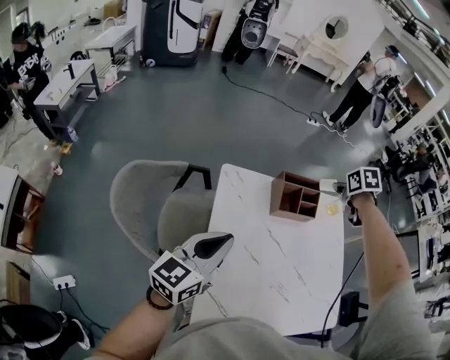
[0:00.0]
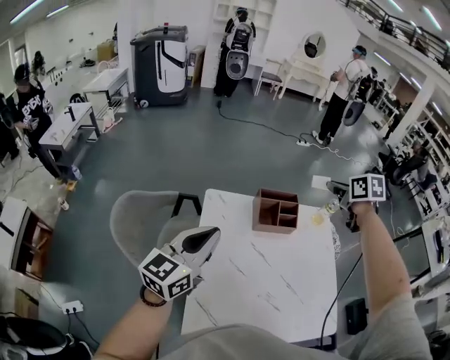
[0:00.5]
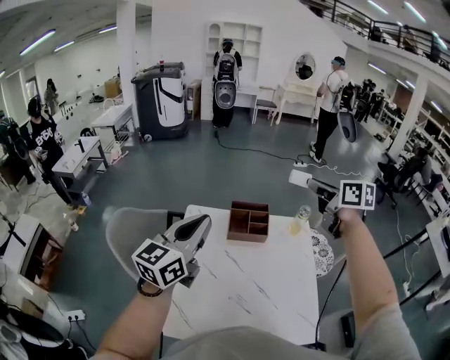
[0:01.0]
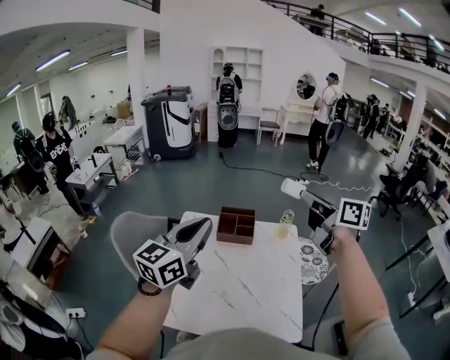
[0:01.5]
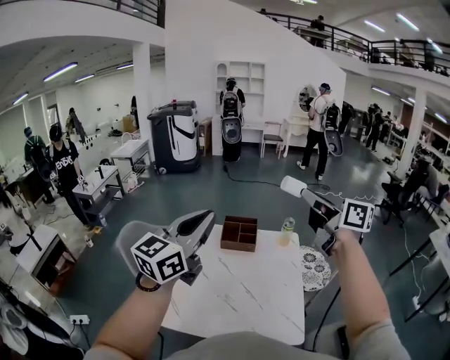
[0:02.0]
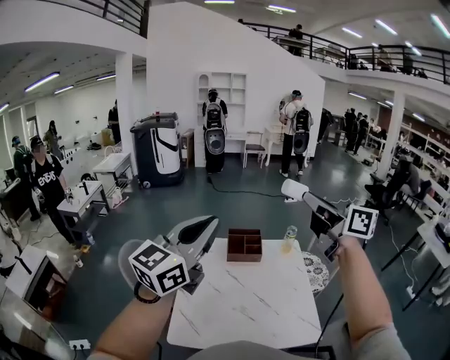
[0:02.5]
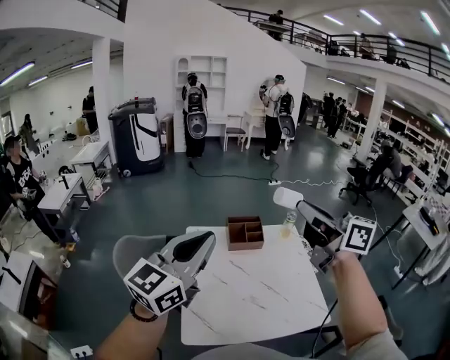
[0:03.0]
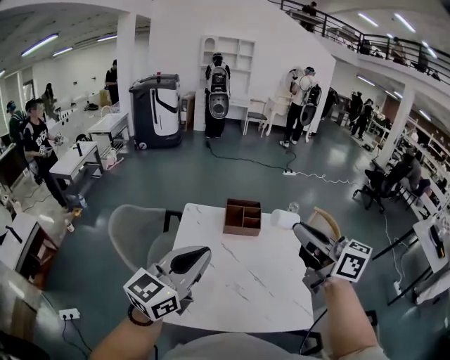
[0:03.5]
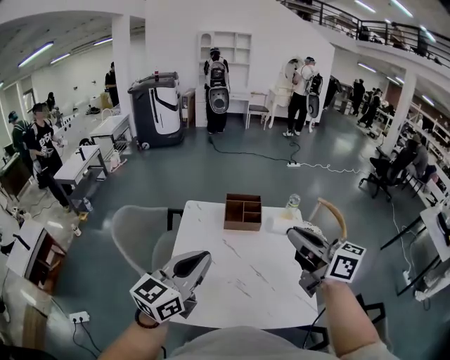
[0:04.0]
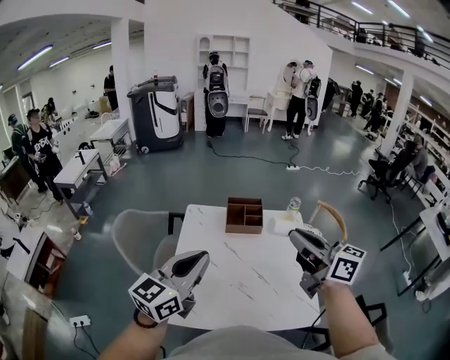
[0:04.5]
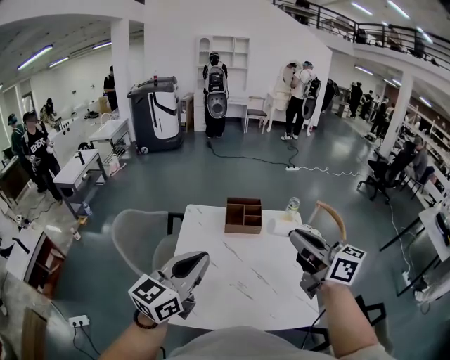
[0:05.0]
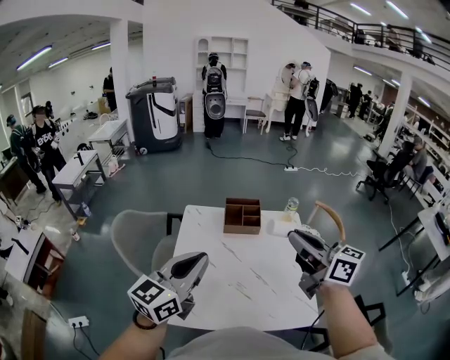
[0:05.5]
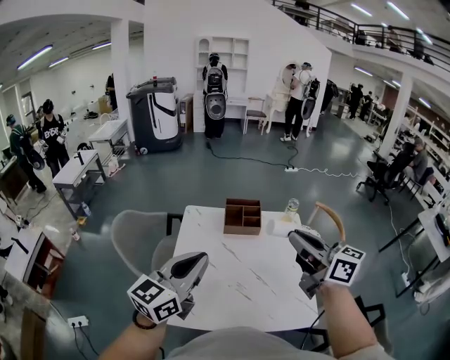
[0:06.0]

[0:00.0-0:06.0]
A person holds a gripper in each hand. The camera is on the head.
0:00.0 to 0:02.0: The grippers both shift upward by about 30 cm. The right gripper tilts its fingers approximately 70 degrees upward. The left gripper swivels about 30 degrees.
0:02.0 to 0:04.0: The right gripper is displaced downward, to the left and backward by approximately 20 cm; the left gripper is displaced downward and to the left by about 15 cm.
0:04.0 to 0:06.0: The grippers move only a little.

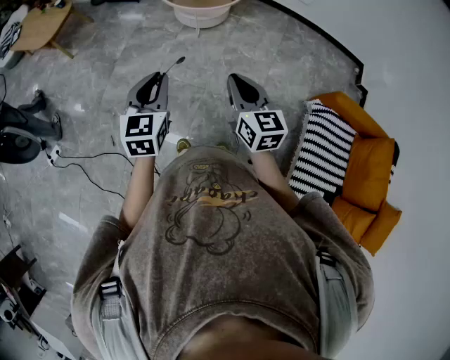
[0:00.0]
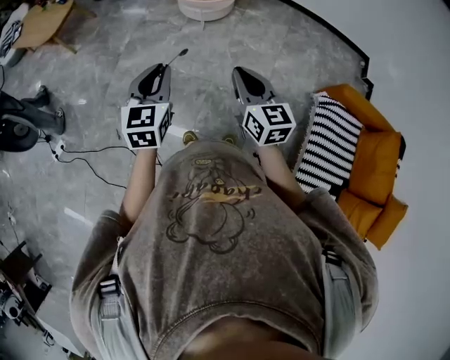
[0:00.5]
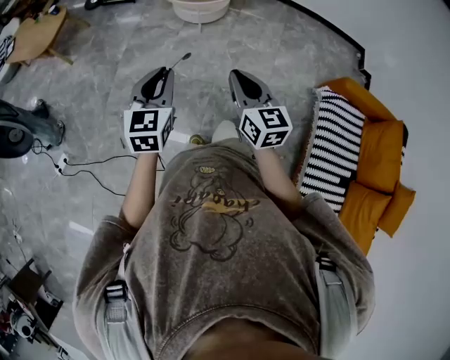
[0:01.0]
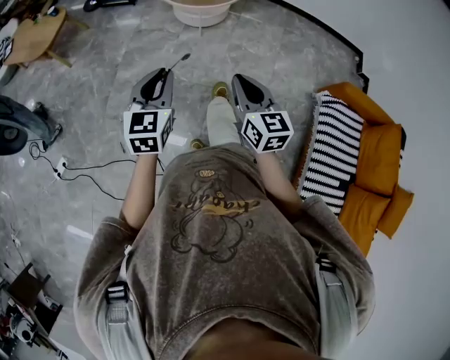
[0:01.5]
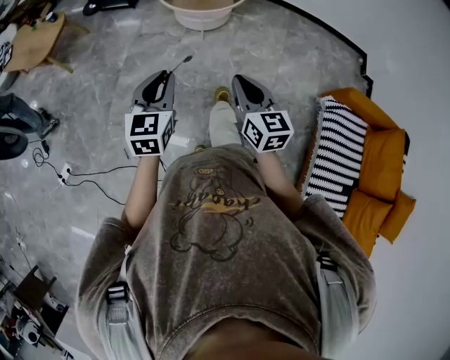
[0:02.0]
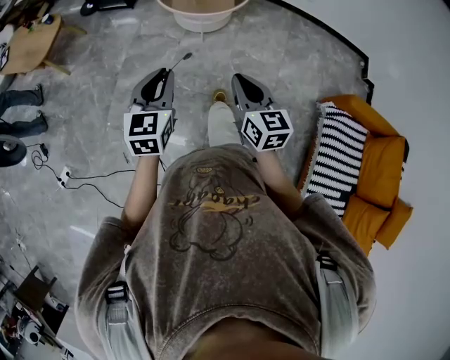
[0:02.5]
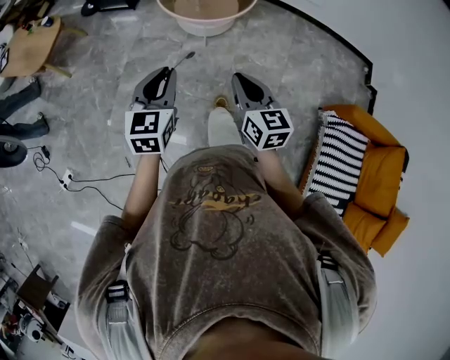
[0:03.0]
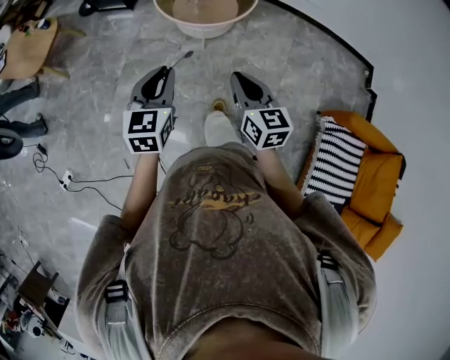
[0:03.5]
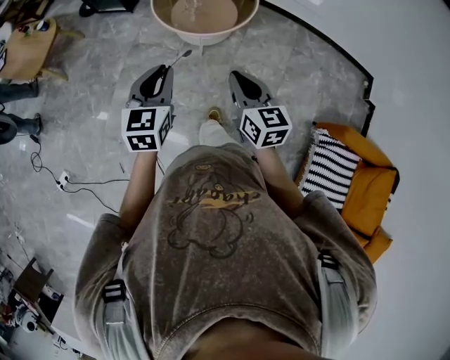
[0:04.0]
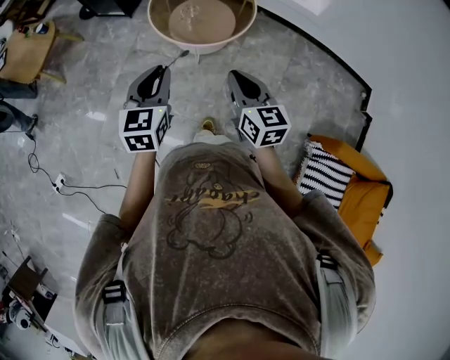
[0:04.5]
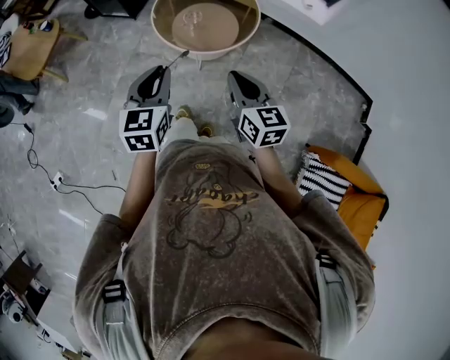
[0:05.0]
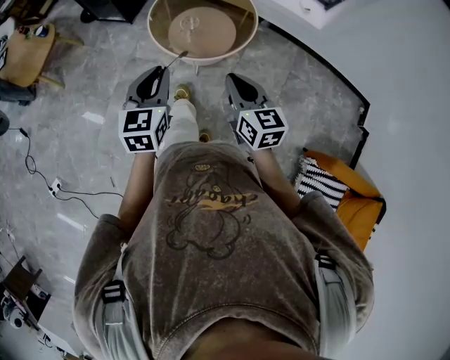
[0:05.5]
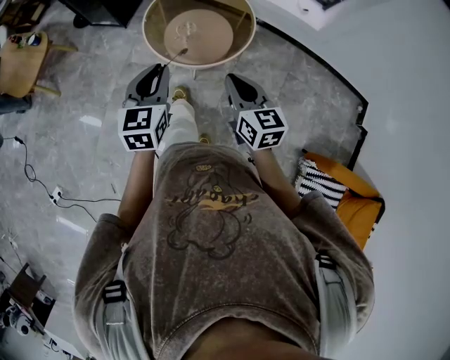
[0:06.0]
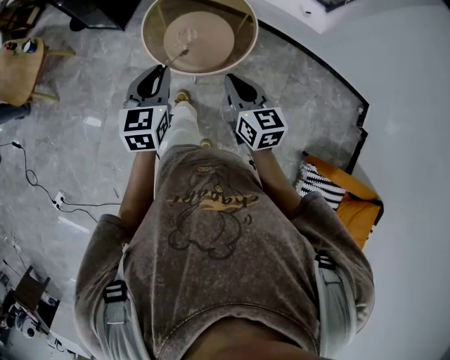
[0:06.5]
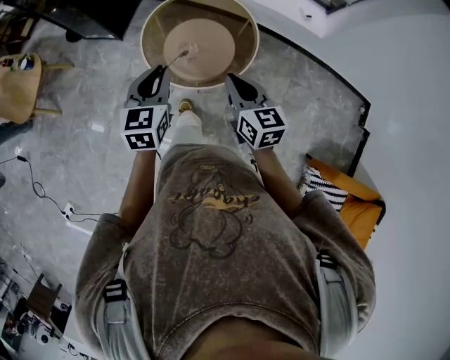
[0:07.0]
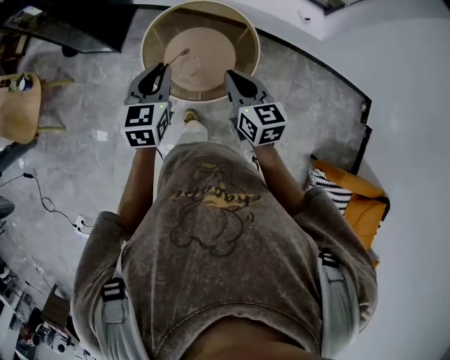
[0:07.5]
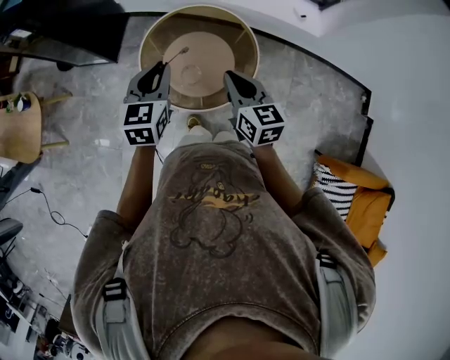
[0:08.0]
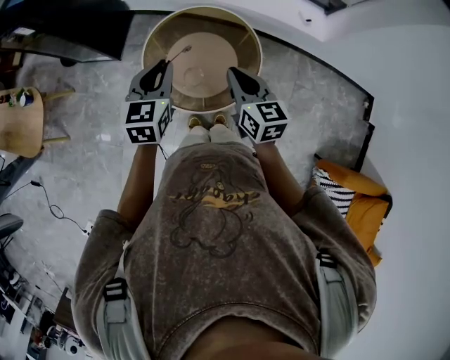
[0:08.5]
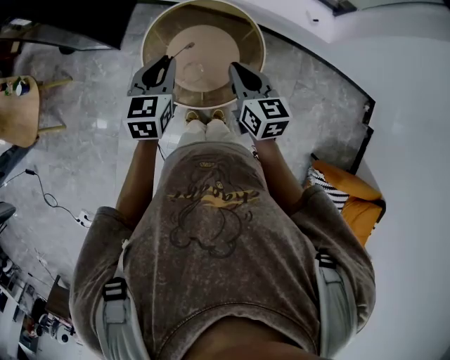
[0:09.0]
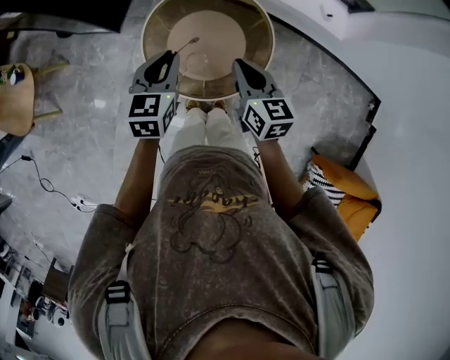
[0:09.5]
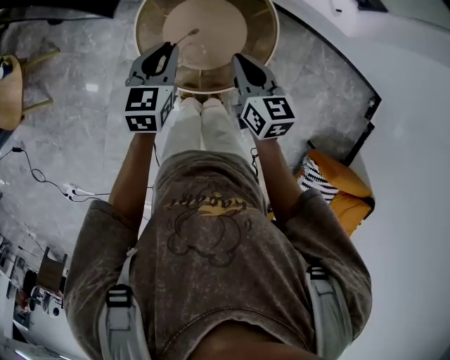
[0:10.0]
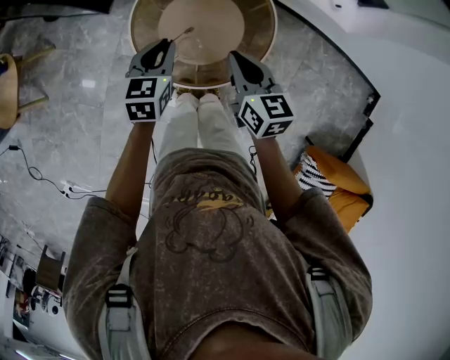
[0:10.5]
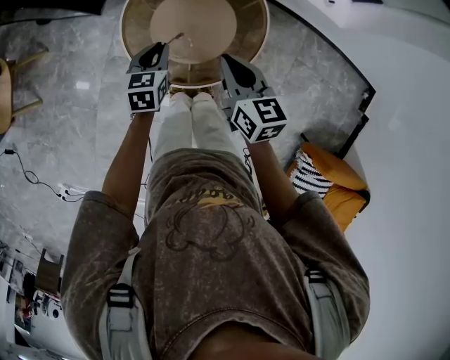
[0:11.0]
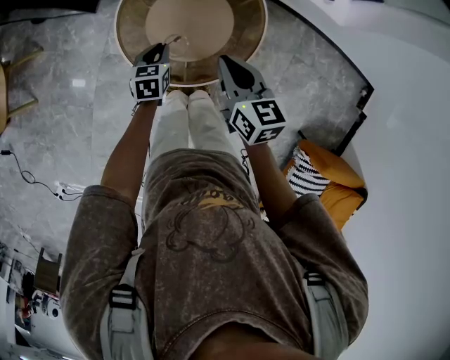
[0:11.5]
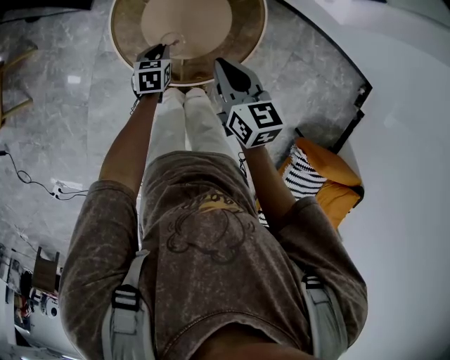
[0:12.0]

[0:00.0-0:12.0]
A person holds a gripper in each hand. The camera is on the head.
0:00.0 to 0:02.0: The right gripper goes about 10 cm to the left and forward; the left gripper heads forward and to the left, covering some 10 cm.
0:02.0 to 0:04.0: The grippers both shift forward by approximately 25 cm.
0:04.0 to 0:06.0: Both grippers travel together forward, approximately 20 cm.
0:06.0 to 0:08.0: Both grippers travel together forward, roughly 30 cm.
0:08.0 to 0:10.0: The two grippers go about 10 cm downward and forward.
0:10.0 to 0:12.0: The left gripper travels downward by roughly 25 cm, and rotates about 20 degrees.

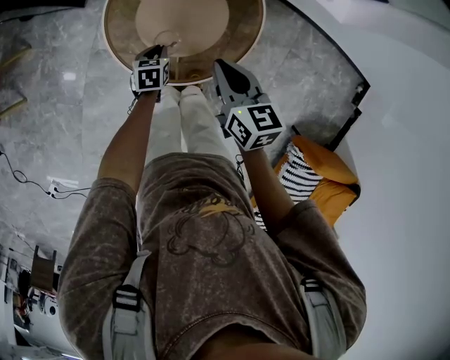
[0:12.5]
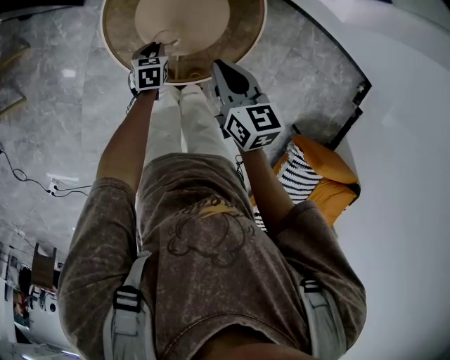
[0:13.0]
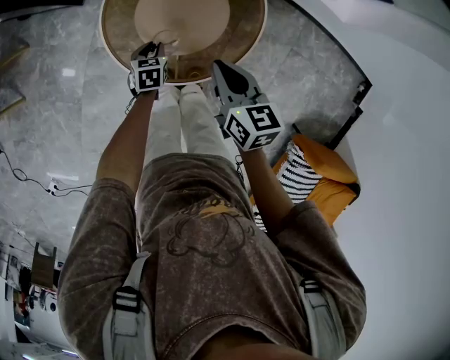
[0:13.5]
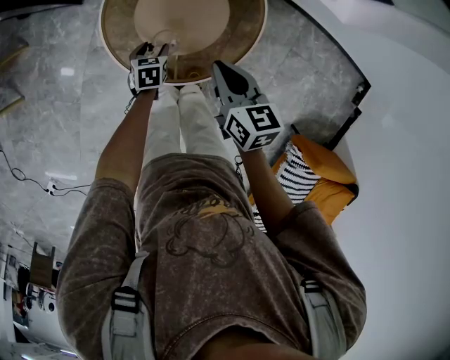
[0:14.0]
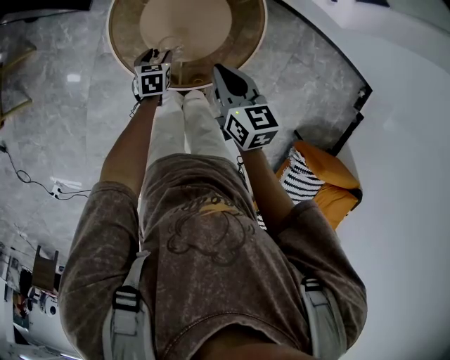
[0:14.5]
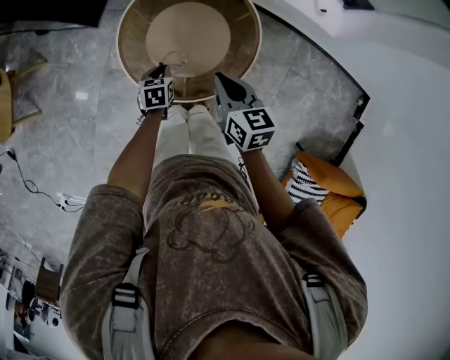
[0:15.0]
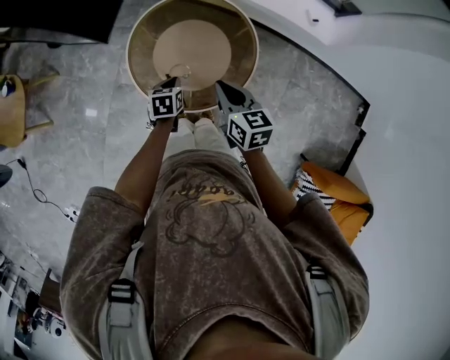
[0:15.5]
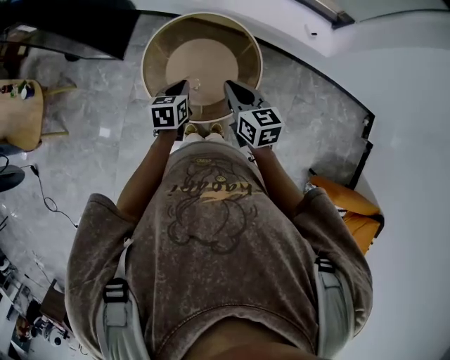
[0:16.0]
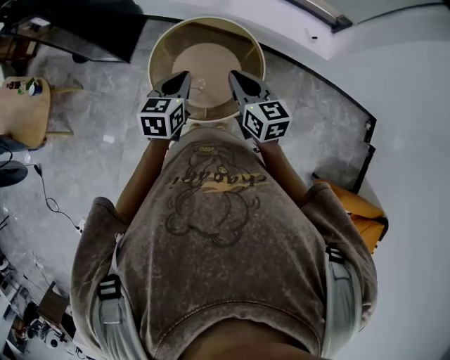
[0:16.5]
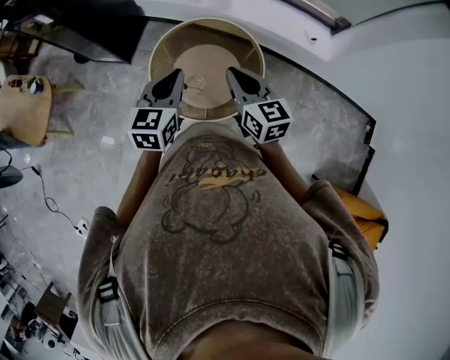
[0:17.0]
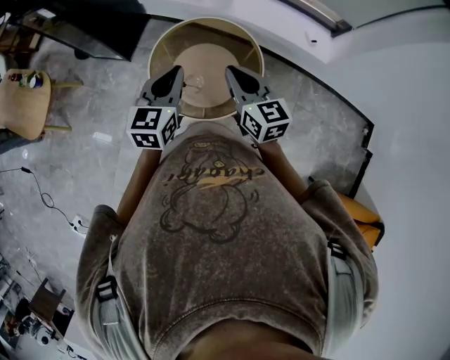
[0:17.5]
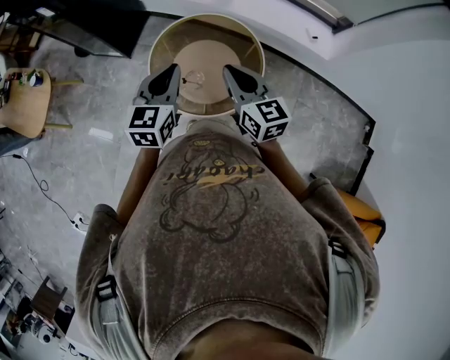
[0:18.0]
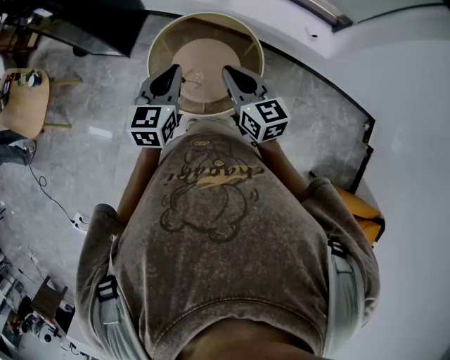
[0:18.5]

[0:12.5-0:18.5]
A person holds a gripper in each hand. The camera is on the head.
0:12.5 to 0:14.5: The left gripper opens up.
0:14.5 to 0:16.5: The left gripper heads upward, covering about 35 cm, changes its angle by some 30 degrees, and closes up. The right gripper moves upward, some 15 cm.
0:16.5 to 0:18.5: The left gripper travels upward by some 5 cm.

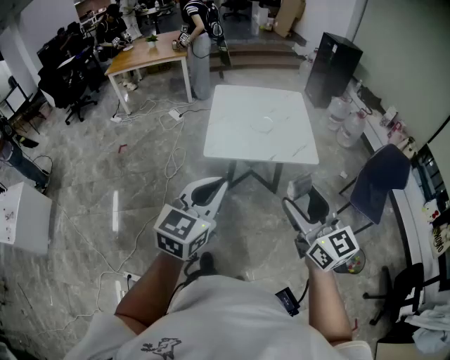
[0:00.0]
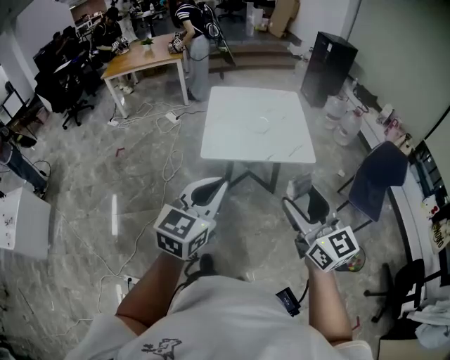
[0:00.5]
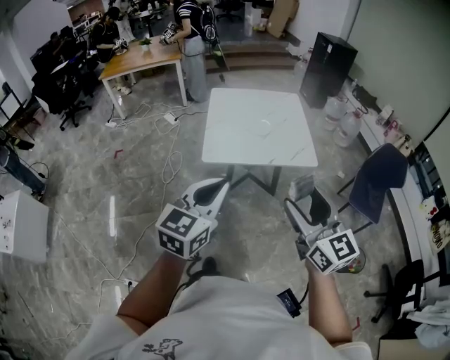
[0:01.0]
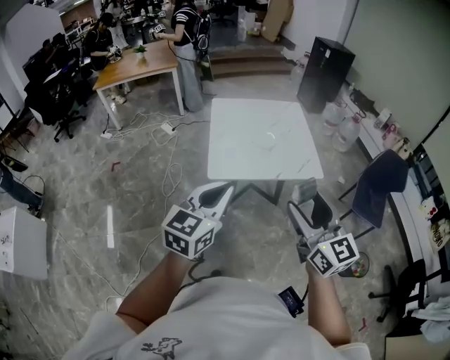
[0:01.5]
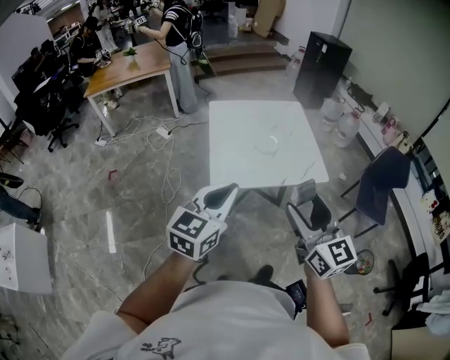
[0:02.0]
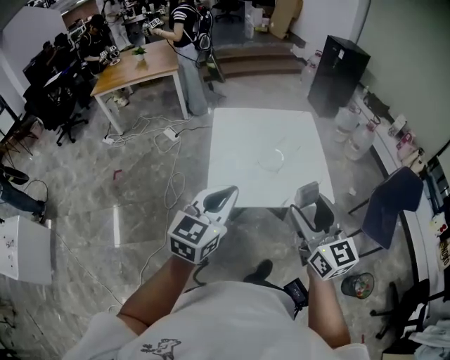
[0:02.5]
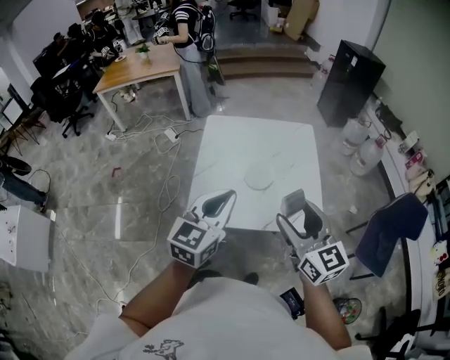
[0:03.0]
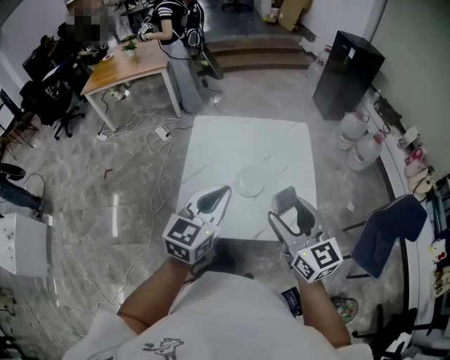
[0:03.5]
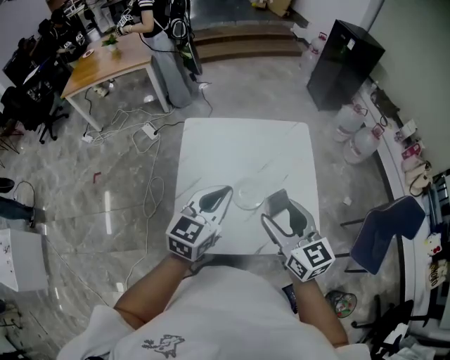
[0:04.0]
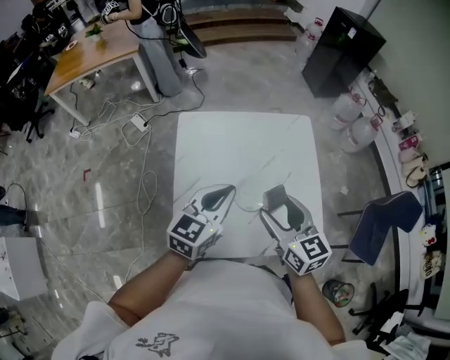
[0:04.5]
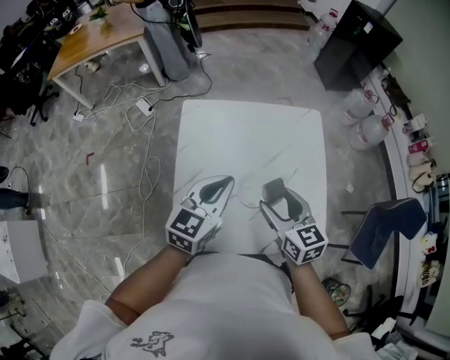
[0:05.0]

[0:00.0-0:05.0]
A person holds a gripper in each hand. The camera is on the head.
0:00.0 to 0:02.5: The two grippers go approximately 30 cm forward.
0:02.5 to 0:05.0: Both grippers are carried forward, roughly 50 cm. The right gripper shifts about 20 cm downward, and turns by roughly 30 degrees.
